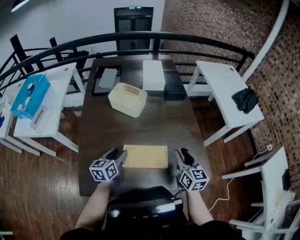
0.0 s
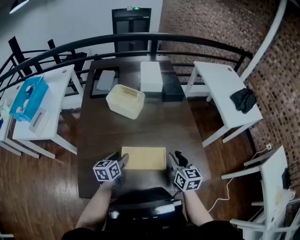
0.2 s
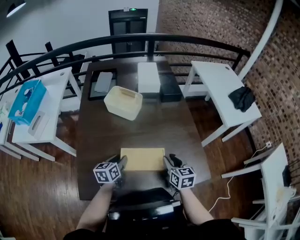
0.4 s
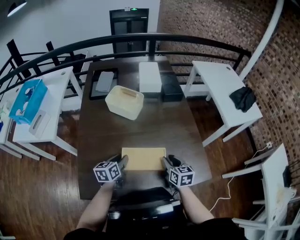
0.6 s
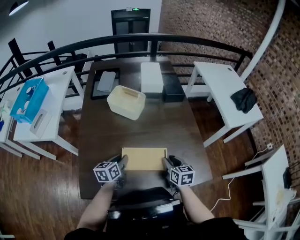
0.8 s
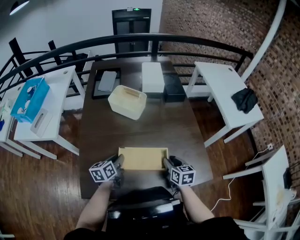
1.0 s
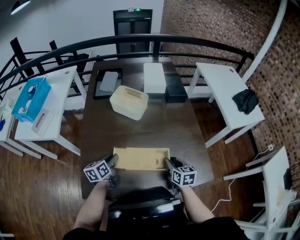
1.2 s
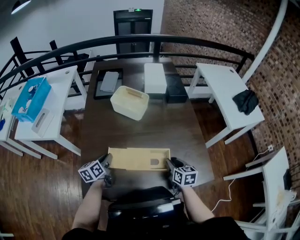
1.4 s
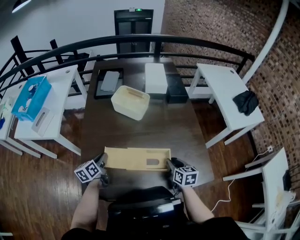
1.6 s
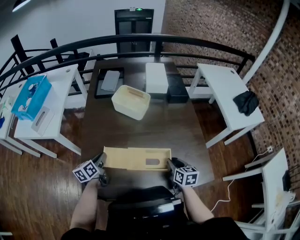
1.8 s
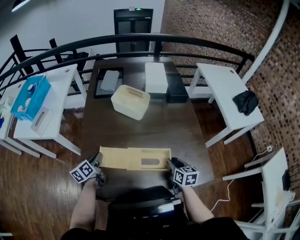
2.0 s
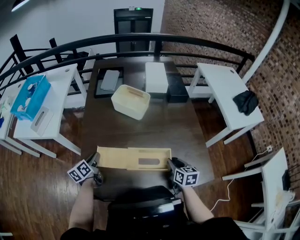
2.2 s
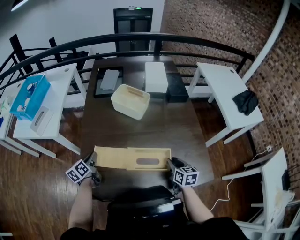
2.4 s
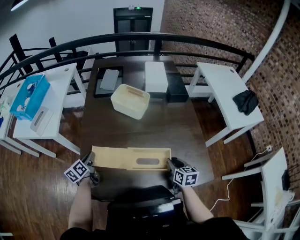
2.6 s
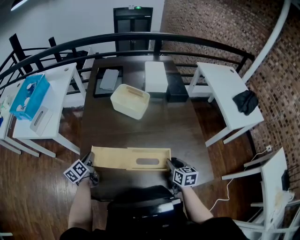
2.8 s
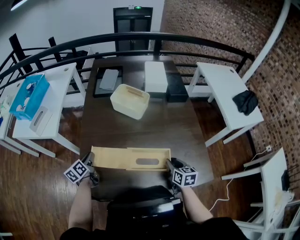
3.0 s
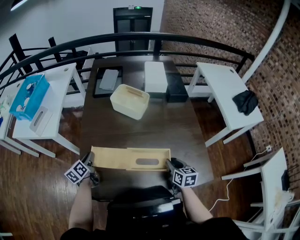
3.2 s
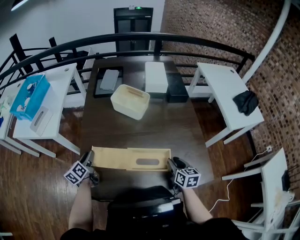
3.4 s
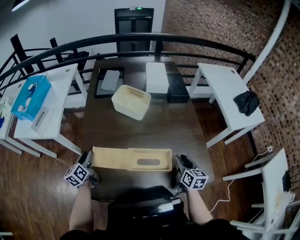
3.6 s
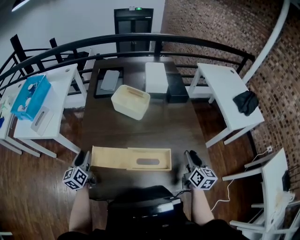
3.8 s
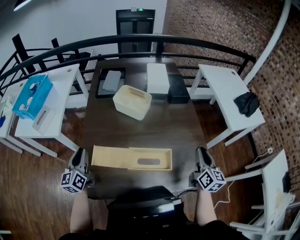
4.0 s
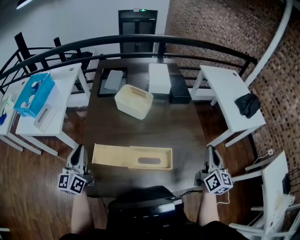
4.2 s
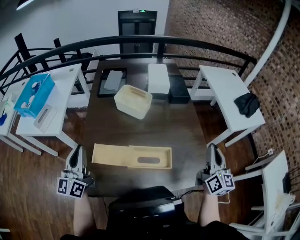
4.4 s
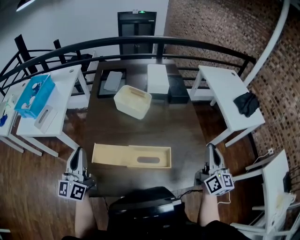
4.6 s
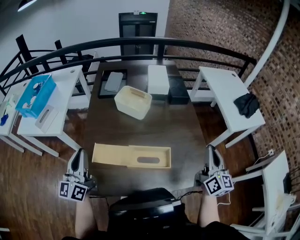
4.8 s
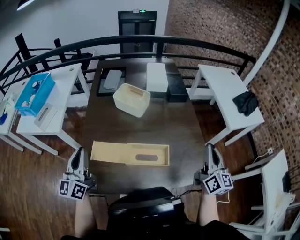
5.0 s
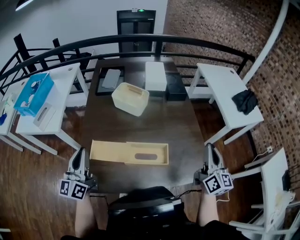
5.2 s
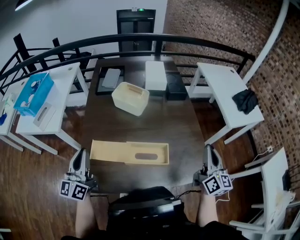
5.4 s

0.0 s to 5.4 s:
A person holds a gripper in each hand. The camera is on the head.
0.0 to 1.4 s: The right gripper shifts approximately 10 cm downward, and swivels approximately 20 degrees, while the left gripper heads to the left, covering about 10 cm, and closes.
1.4 to 2.8 s: The left gripper goes about 10 cm to the left.
2.8 to 4.0 s: The left gripper moves upward, roughly 15 cm, rotates about 30 degrees, and opens, then closes again. The right gripper heads upward and to the right, covering some 20 cm, and changes its angle by about 30 degrees.
4.0 to 5.4 s: The right gripper travels upward by approximately 10 cm. The left gripper goes some 10 cm upward, backward and to the right.

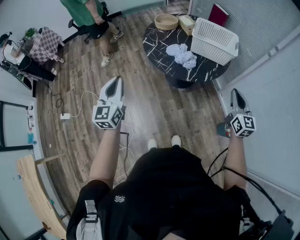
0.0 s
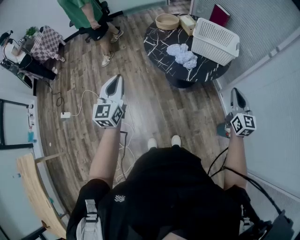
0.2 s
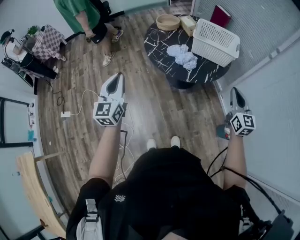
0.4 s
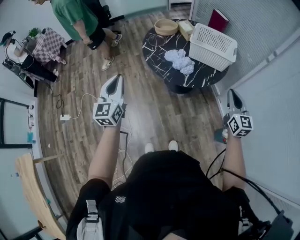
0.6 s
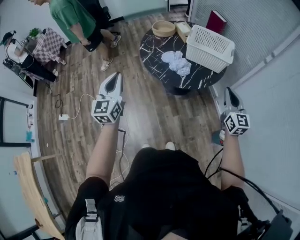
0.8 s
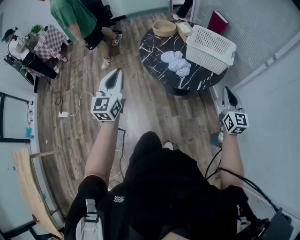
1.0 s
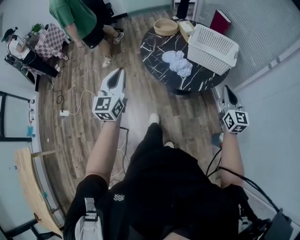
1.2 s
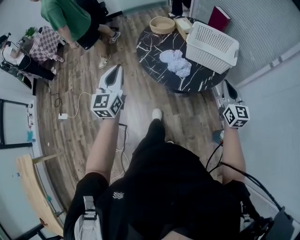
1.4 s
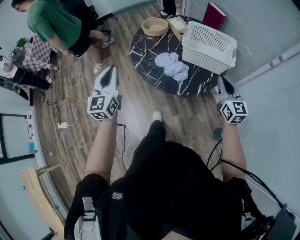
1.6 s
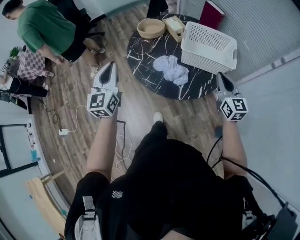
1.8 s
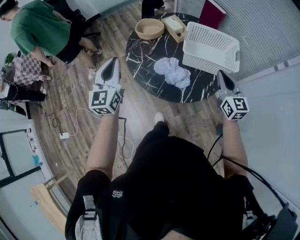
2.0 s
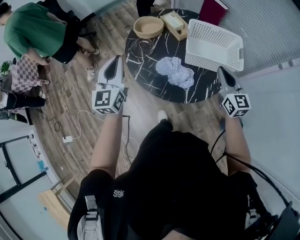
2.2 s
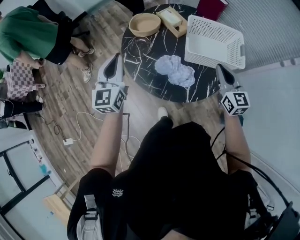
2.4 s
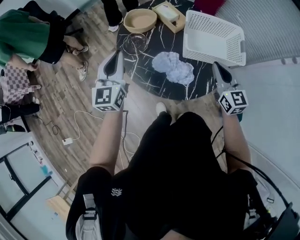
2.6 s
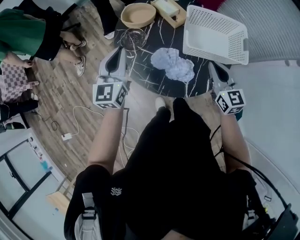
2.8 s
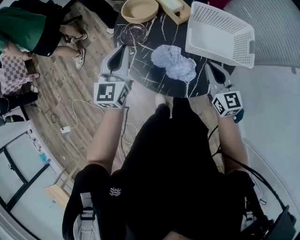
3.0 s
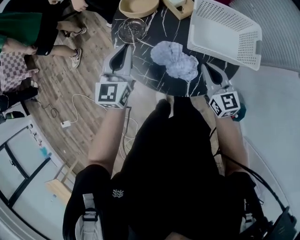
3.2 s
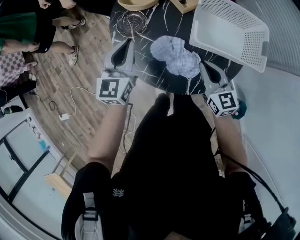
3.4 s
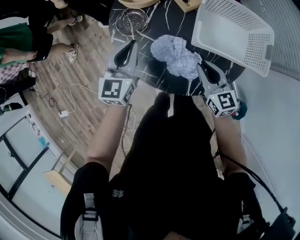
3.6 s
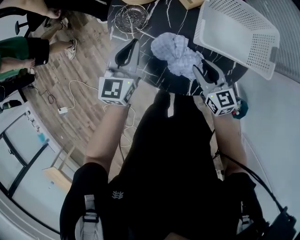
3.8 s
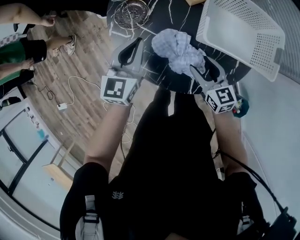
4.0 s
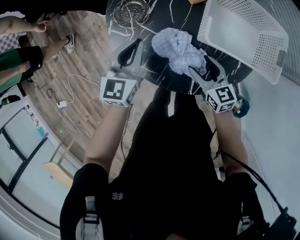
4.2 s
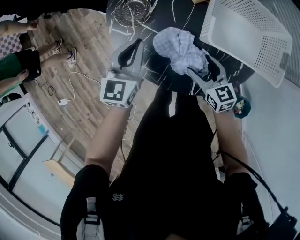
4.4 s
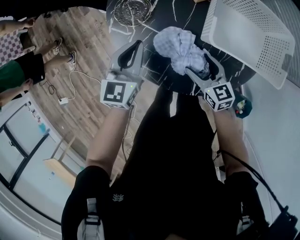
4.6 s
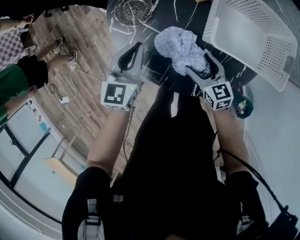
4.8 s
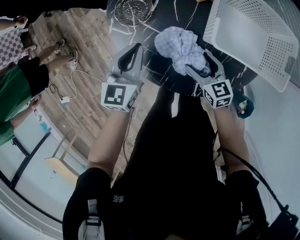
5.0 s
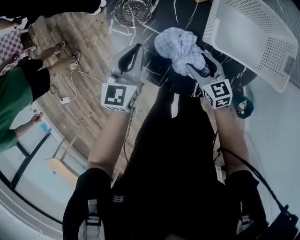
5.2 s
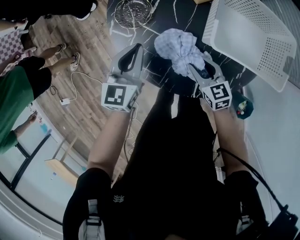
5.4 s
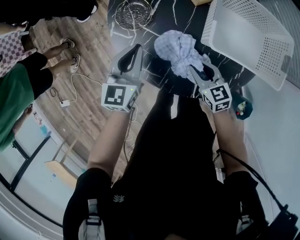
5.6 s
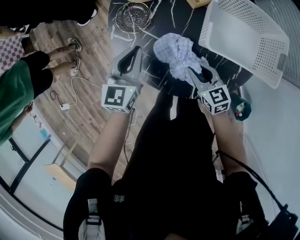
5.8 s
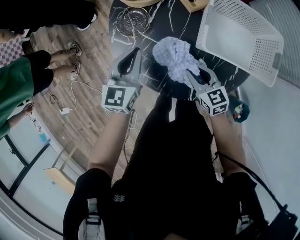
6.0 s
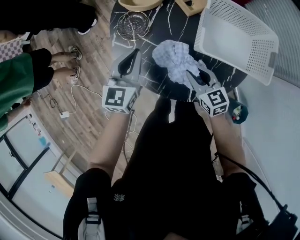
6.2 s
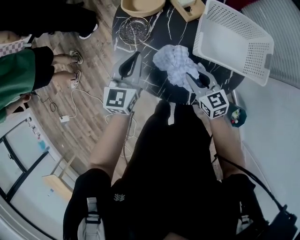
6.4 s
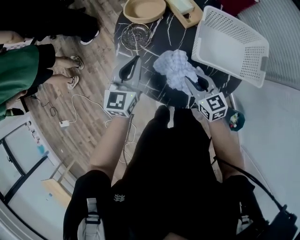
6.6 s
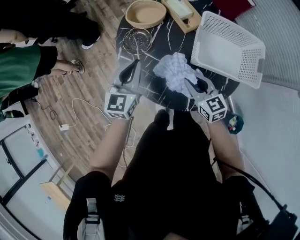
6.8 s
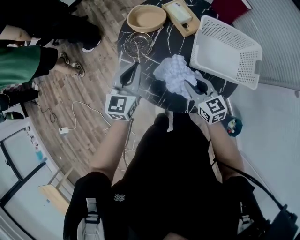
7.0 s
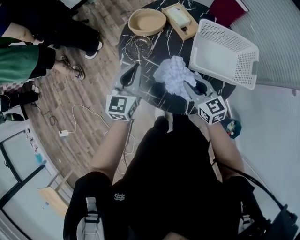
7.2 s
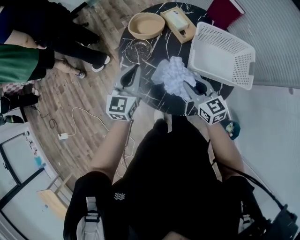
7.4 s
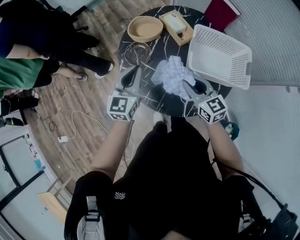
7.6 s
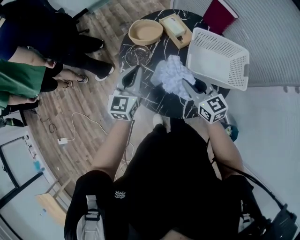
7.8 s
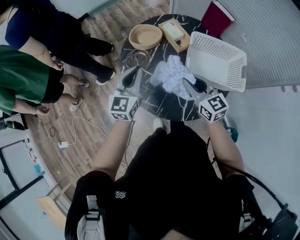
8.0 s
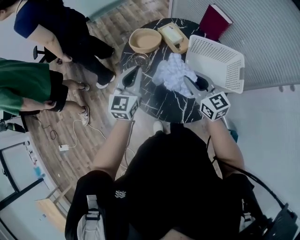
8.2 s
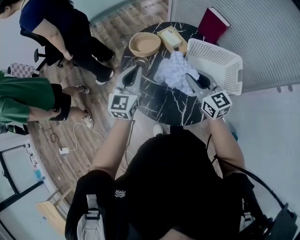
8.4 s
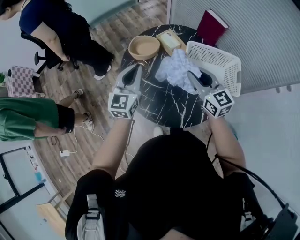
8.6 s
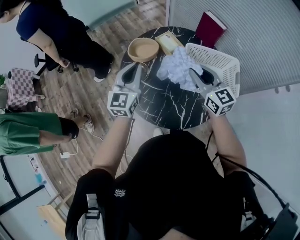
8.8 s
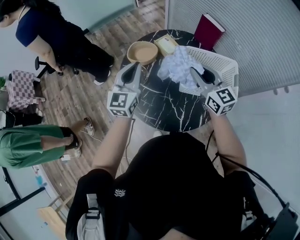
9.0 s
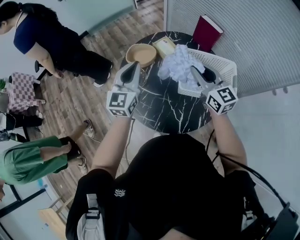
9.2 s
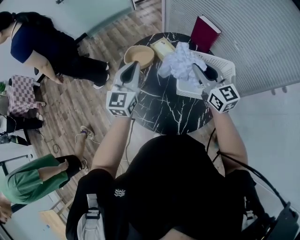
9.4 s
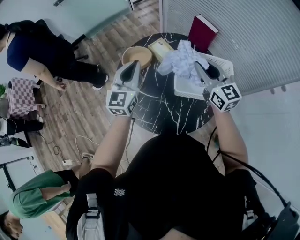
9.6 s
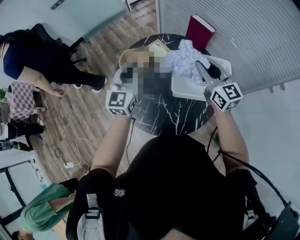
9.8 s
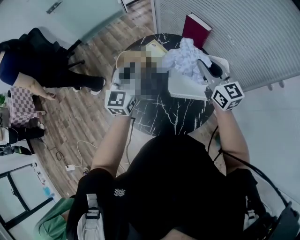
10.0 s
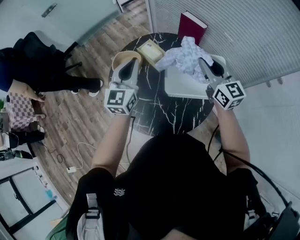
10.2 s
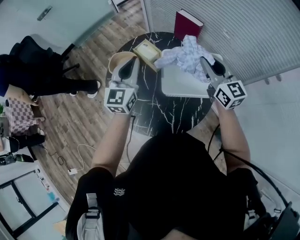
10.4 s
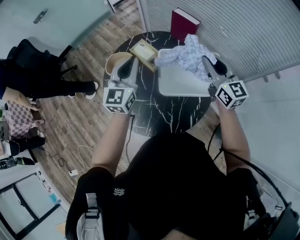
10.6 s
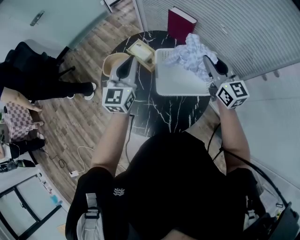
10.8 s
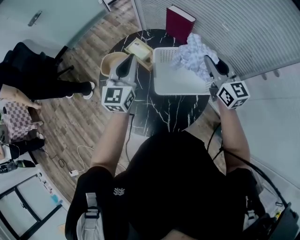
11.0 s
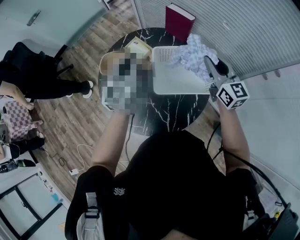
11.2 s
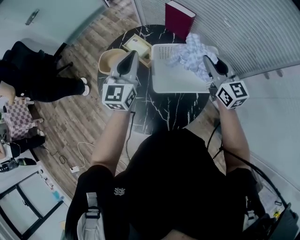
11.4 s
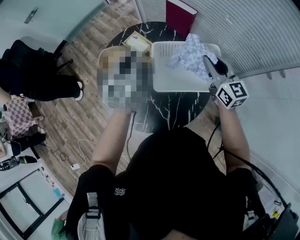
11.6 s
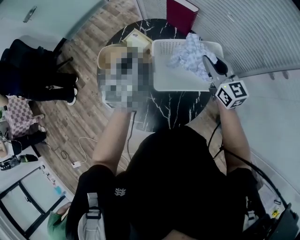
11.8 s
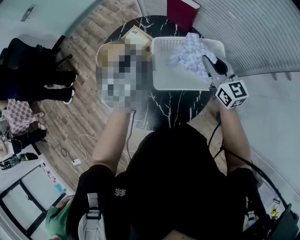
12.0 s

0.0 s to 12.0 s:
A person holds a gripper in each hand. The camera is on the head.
0.0 to 1.6 s: The two grippers go some 20 cm forward.
1.6 to 3.0 s: The left gripper is displaced forward by roughly 25 cm. Meanwhile the right gripper travels forward, to the left and downward by approximately 20 cm.
3.0 to 4.4 s: The grippers both shift downward by about 15 cm. The right gripper turns by some 20 degrees, and opens.
4.4 to 6.0 s: The right gripper closes.
6.0 to 7.6 s: The right gripper is displaced upward by some 15 cm. Meanwhile the left gripper shifts about 10 cm upward.
7.6 to 9.0 s: The left gripper goes about 15 cm upward and forward, while the right gripper moves upward, forward and to the right, approximately 20 cm.
9.0 to 10.4 s: The left gripper moves to the right and forward, about 15 cm. The right gripper is displaced to the right by about 15 cm.
10.4 to 12.0 s: The left gripper travels downward and to the right by roughly 5 cm, while the right gripper moves downward, roughly 10 cm.

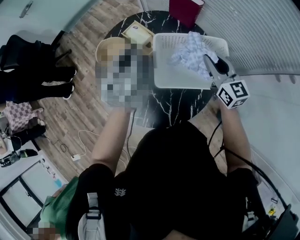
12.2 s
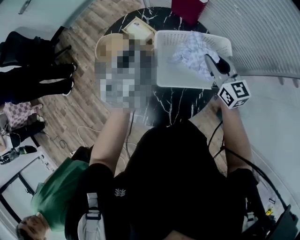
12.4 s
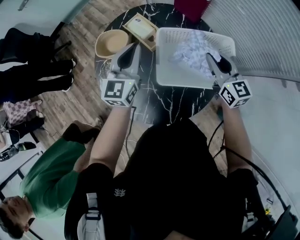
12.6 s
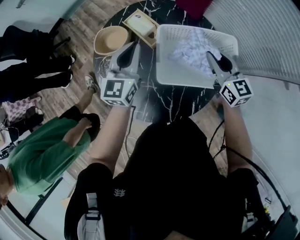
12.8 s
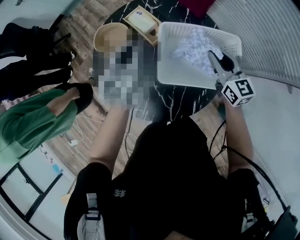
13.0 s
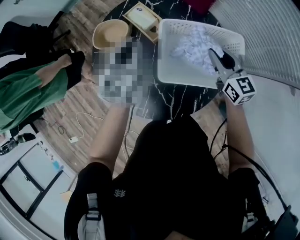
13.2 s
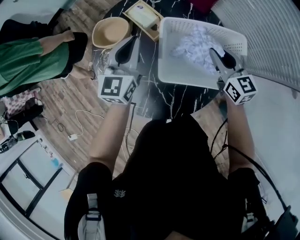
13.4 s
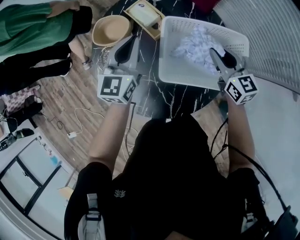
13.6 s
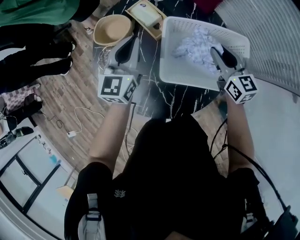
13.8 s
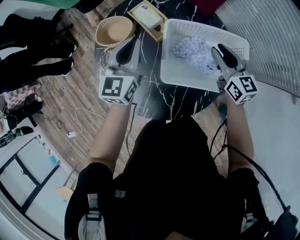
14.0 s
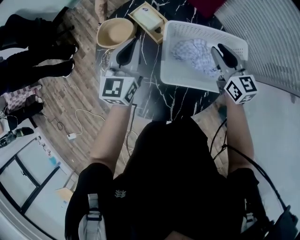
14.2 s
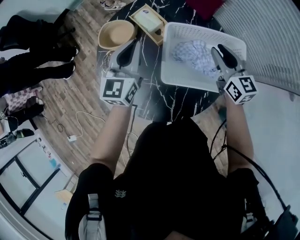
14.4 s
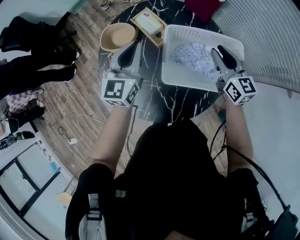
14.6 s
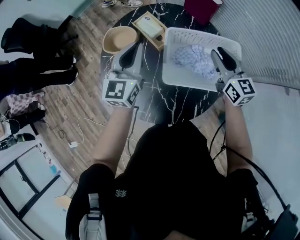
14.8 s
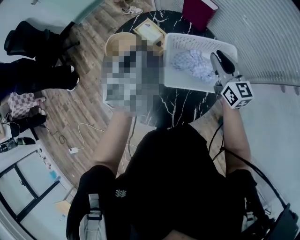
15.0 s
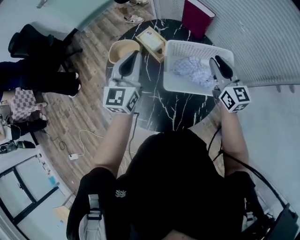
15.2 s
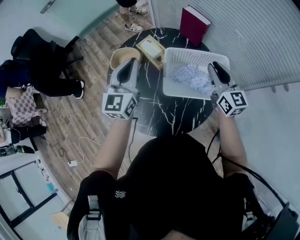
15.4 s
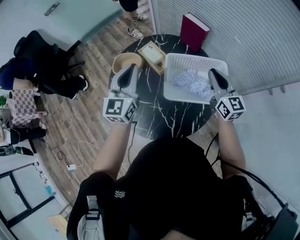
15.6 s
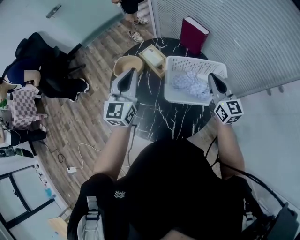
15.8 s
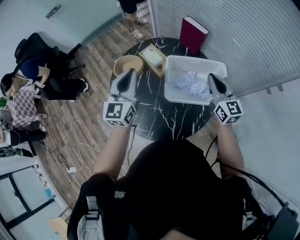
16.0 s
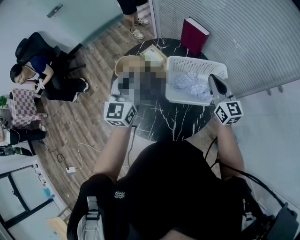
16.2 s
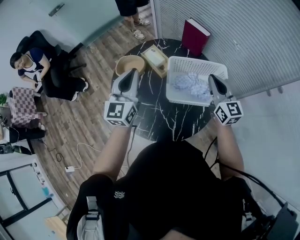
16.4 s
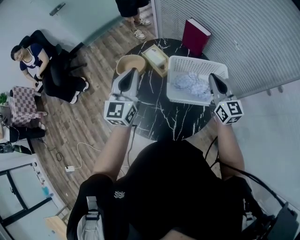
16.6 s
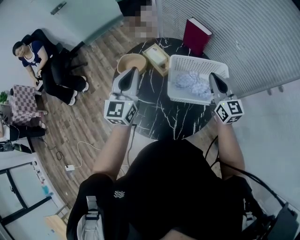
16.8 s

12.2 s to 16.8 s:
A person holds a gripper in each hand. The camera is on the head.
12.2 to 13.8 s: Both grippers move downward, about 10 cm.
13.8 to 15.2 s: Both grippers travel together upward, about 10 cm.
15.2 to 16.8 s: Both grippers move backward, roughly 5 cm.

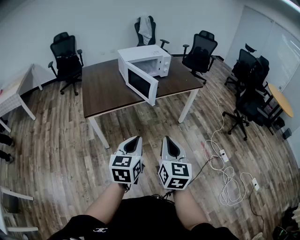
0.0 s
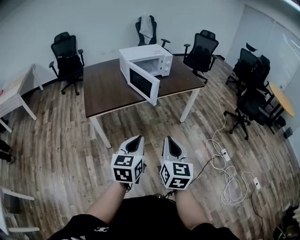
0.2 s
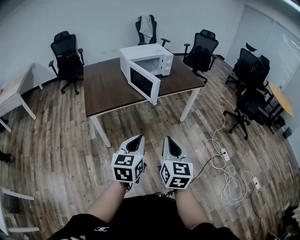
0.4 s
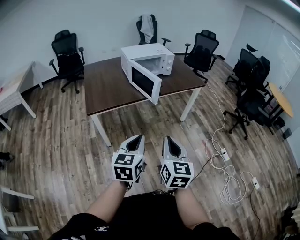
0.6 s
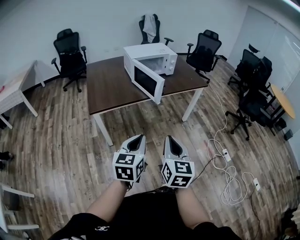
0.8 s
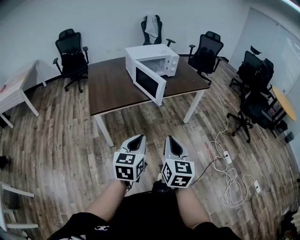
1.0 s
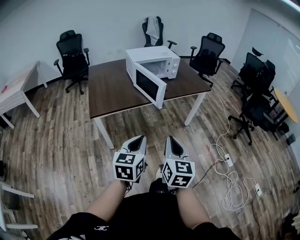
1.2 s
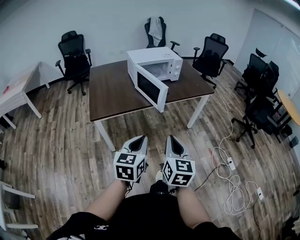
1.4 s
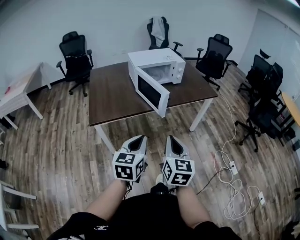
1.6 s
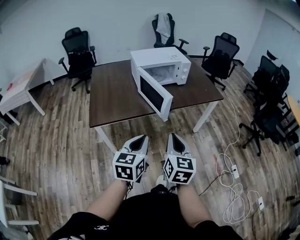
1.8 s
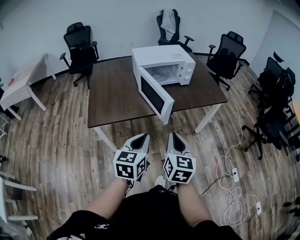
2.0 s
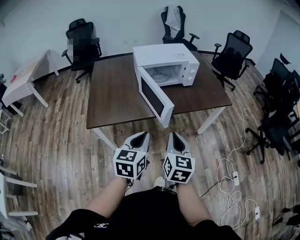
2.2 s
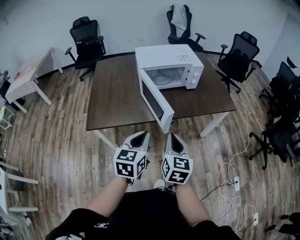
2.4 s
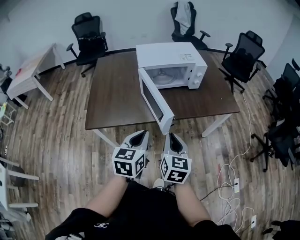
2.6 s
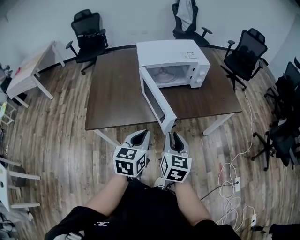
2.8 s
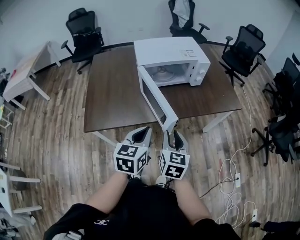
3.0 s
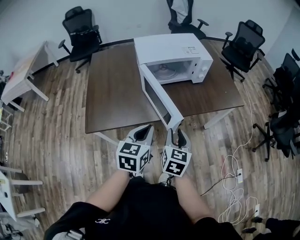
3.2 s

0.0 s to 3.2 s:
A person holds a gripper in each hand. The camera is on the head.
0.0 to 1.6 s: The two grippers go some 10 cm forward.
1.6 to 3.2 s: Both grippers move forward, about 30 cm. The right gripper opens.
